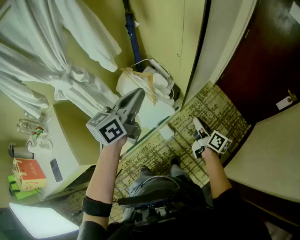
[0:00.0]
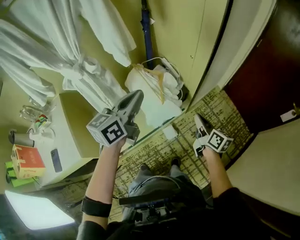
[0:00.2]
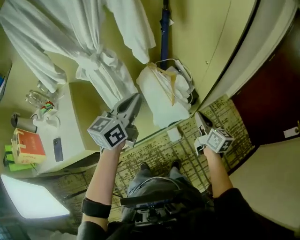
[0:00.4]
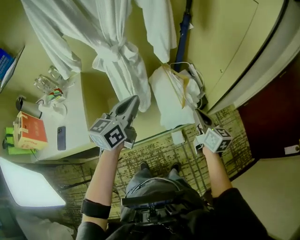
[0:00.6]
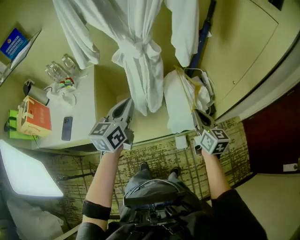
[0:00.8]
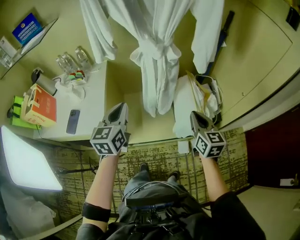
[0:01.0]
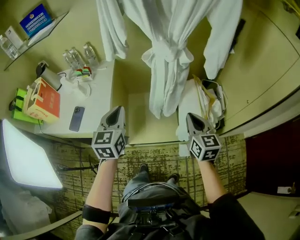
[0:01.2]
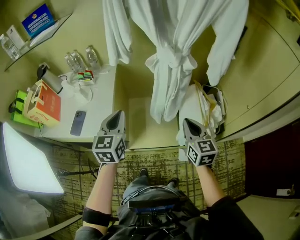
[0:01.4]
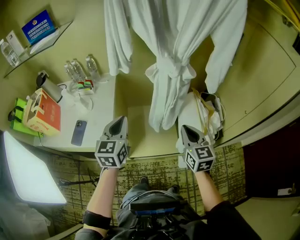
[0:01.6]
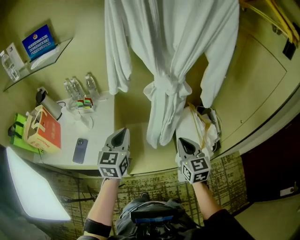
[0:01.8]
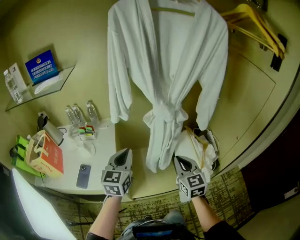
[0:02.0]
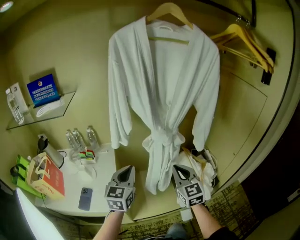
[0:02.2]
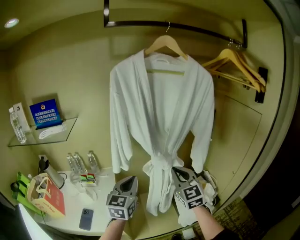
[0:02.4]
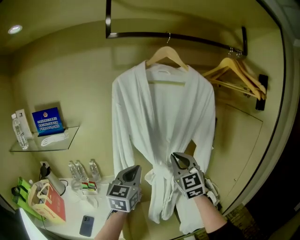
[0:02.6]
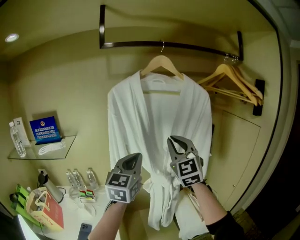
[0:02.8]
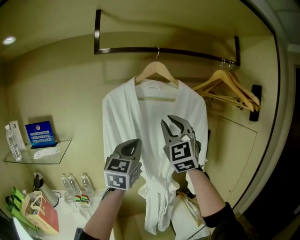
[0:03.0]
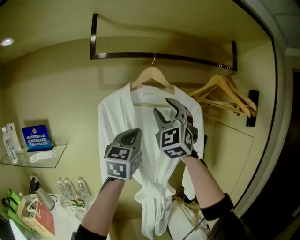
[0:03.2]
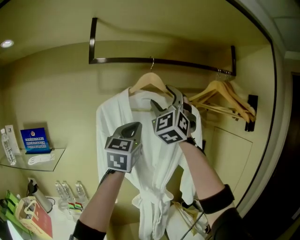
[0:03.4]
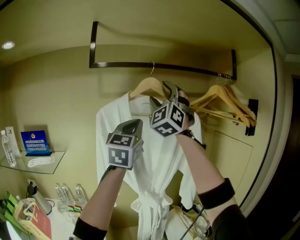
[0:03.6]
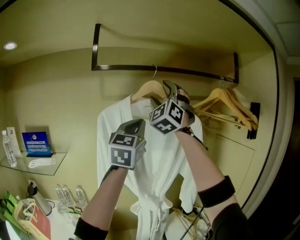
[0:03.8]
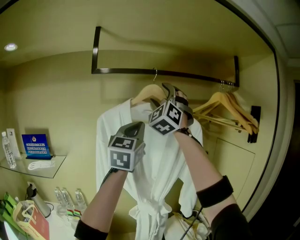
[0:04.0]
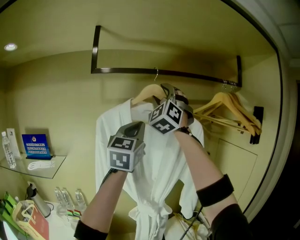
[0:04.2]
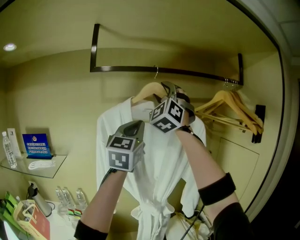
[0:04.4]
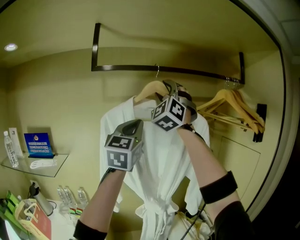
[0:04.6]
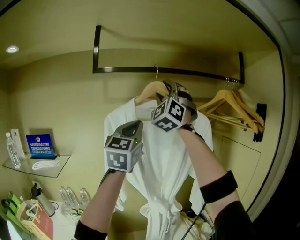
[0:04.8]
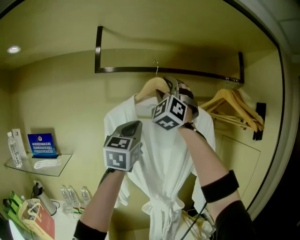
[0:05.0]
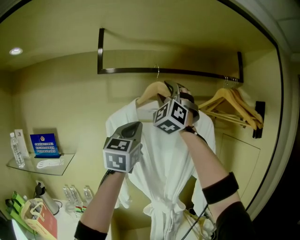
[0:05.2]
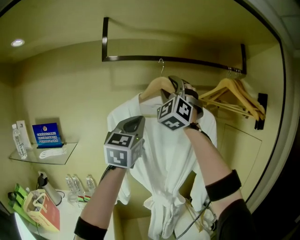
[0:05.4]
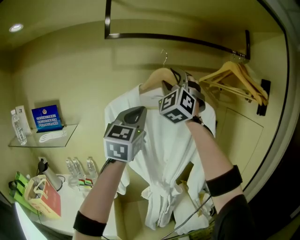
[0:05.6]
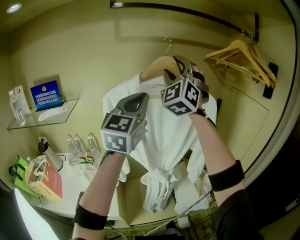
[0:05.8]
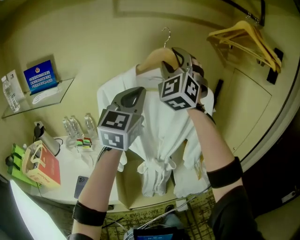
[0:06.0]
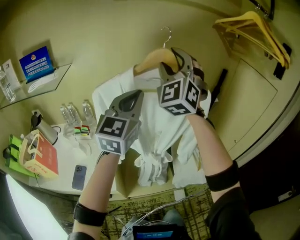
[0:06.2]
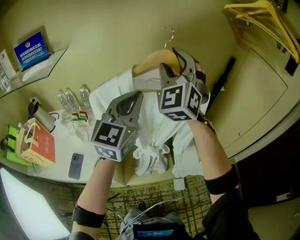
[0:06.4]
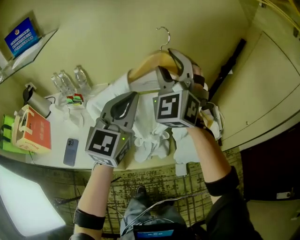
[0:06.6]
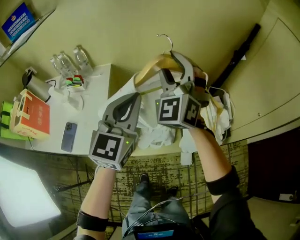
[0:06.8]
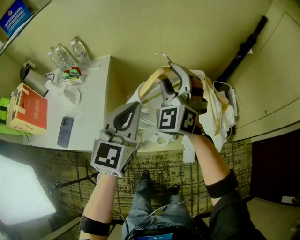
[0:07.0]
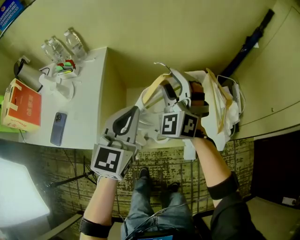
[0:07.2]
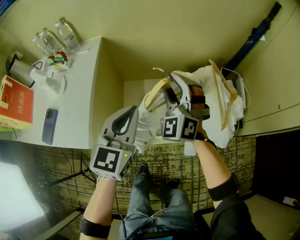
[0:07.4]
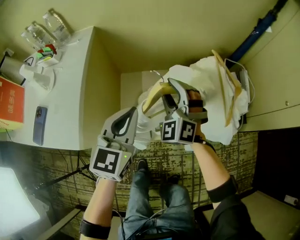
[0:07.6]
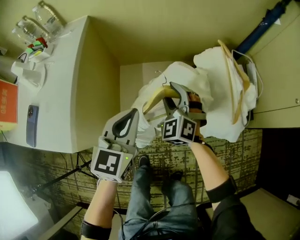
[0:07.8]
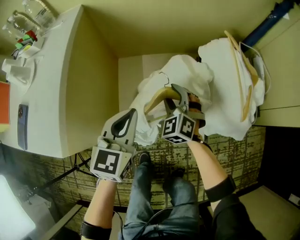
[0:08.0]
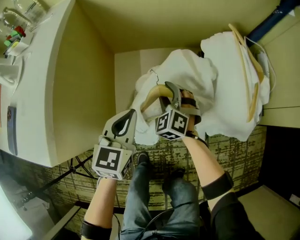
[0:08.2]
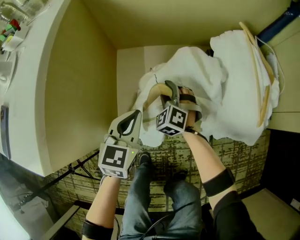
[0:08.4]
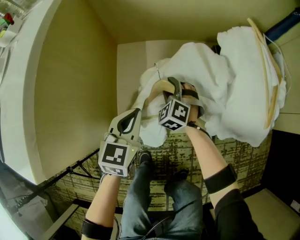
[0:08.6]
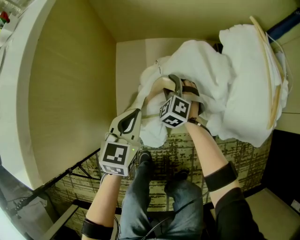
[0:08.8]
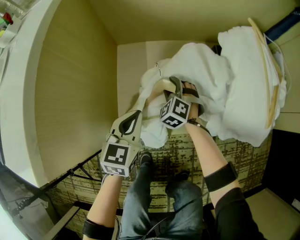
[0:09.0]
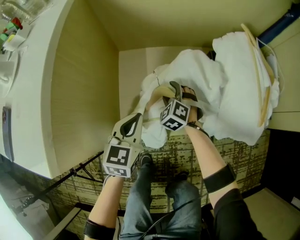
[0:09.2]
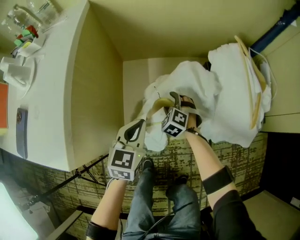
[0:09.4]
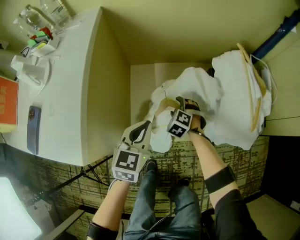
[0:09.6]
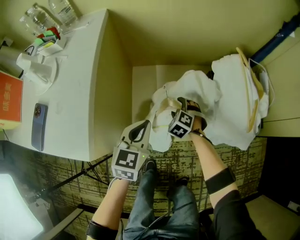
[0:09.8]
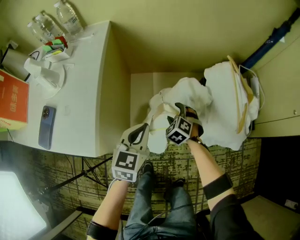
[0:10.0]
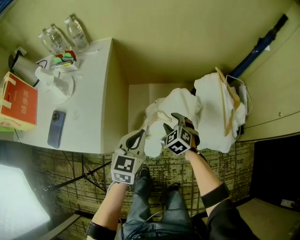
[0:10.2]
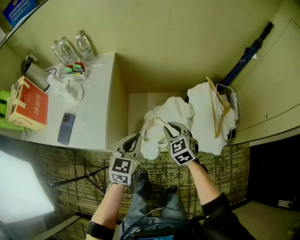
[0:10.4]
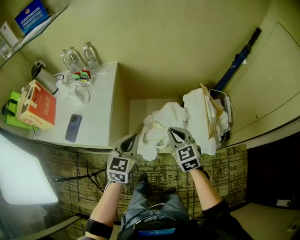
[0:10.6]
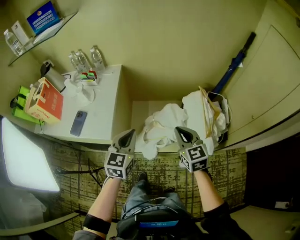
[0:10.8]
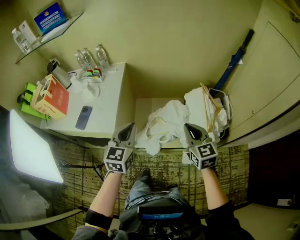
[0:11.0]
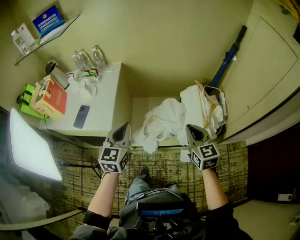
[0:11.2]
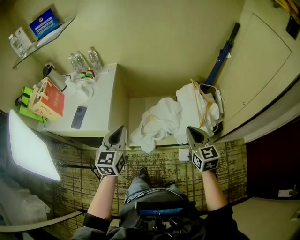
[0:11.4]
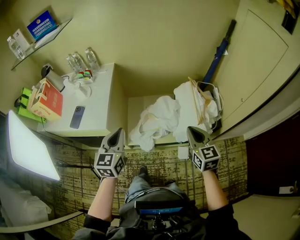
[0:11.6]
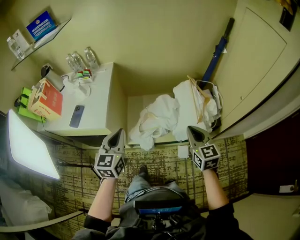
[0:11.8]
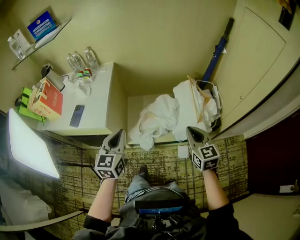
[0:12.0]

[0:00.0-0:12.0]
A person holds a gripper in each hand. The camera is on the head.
0:00.0 to 0:01.6: Both grippers are carried roughly 40 cm. The left gripper turns by about 60 degrees, while the right gripper twists roughly 60 degrees counterclockwise, seen from behind.
0:01.6 to 0:03.0: The right gripper travels upward by roughly 50 cm, and tilts its fingers about 40 degrees upward. Meanwhile the left gripper heads upward and forward, covering some 40 cm, and turns by approximately 40 degrees.
0:03.0 to 0:04.4: Both grippers move upward and forward, about 20 cm. The right gripper rotates roughly 30 degrees, and opens up.
0:04.4 to 0:06.0: The left gripper heads downward and backward, covering about 20 cm; the right gripper is displaced downward by roughly 20 cm.
0:06.0 to 0:07.6: The grippers both shift downward by about 60 cm. The right gripper points its fingers about 40 degrees further downward. The left gripper changes its angle by roughly 30 degrees.
0:07.6 to 0:09.0: The grippers both shift downward by about 35 cm. The right gripper swivels approximately 30 degrees.
0:09.0 to 0:10.4: Both grippers move upward, about 35 cm. The right gripper changes its angle by about 30 degrees, and closes its fingers.
0:10.4 to 0:12.0: The left gripper shifts approximately 20 cm upward and backward, while the right gripper moves backward, upward and to the right, approximately 35 cm, and swivels roughly 30 degrees.

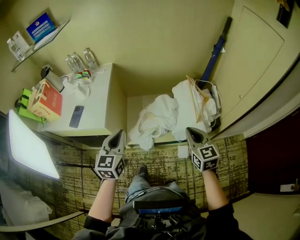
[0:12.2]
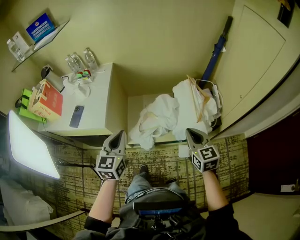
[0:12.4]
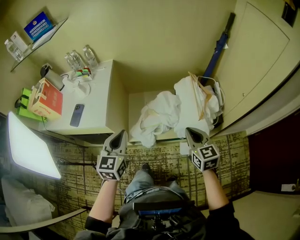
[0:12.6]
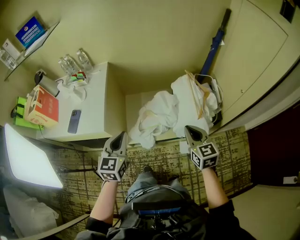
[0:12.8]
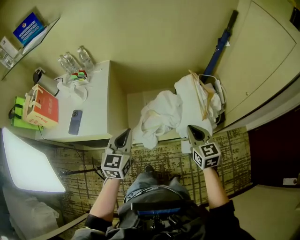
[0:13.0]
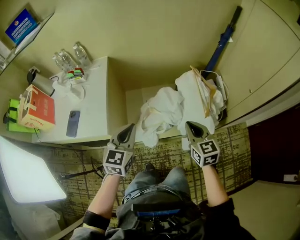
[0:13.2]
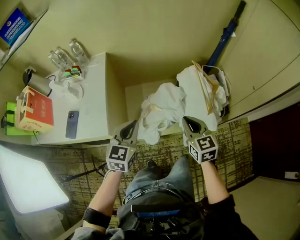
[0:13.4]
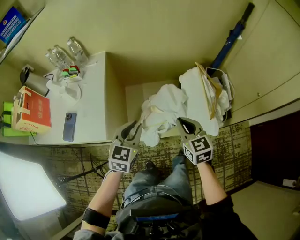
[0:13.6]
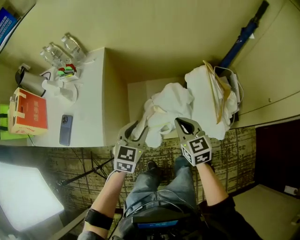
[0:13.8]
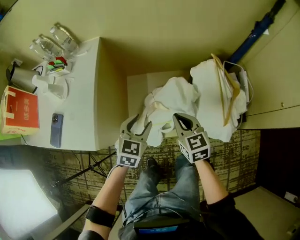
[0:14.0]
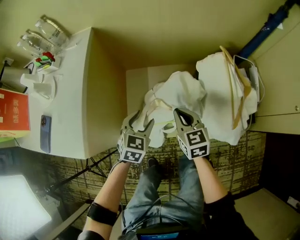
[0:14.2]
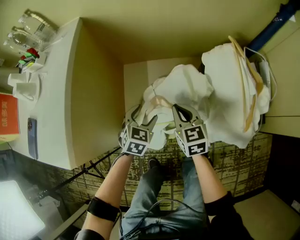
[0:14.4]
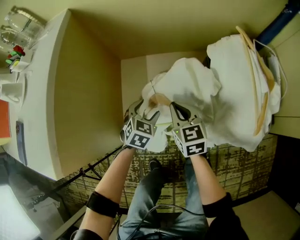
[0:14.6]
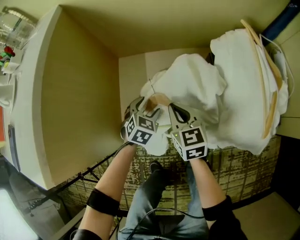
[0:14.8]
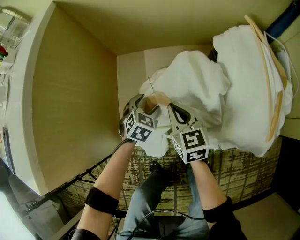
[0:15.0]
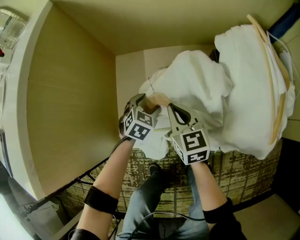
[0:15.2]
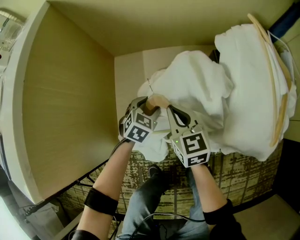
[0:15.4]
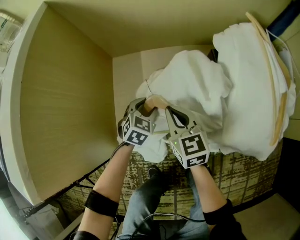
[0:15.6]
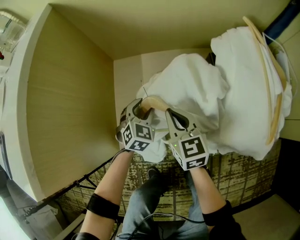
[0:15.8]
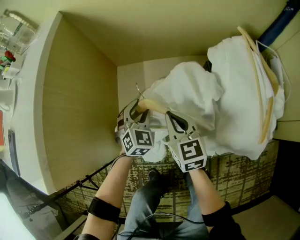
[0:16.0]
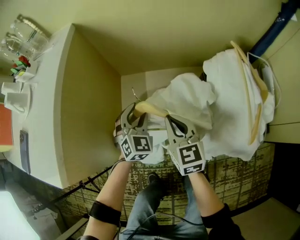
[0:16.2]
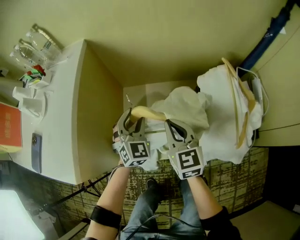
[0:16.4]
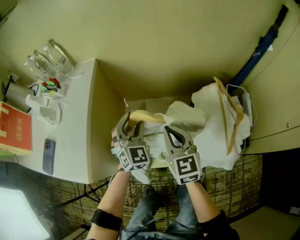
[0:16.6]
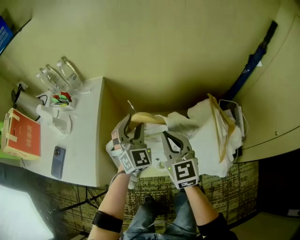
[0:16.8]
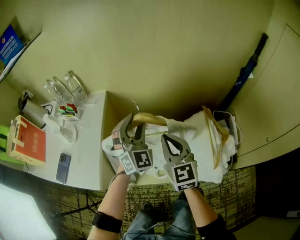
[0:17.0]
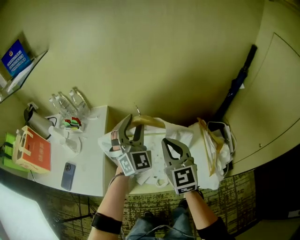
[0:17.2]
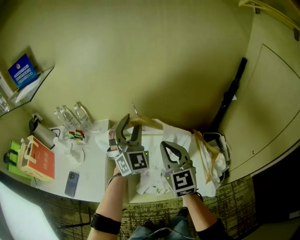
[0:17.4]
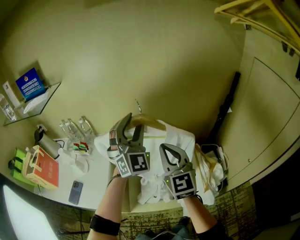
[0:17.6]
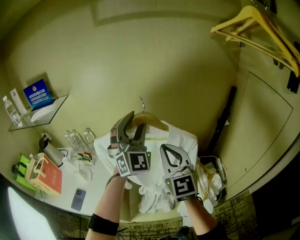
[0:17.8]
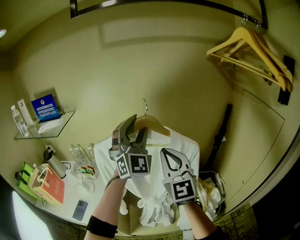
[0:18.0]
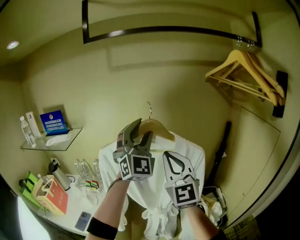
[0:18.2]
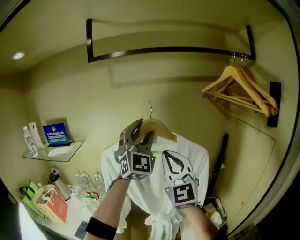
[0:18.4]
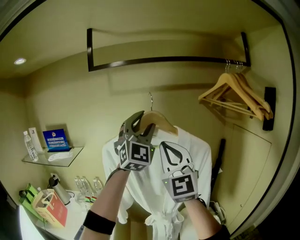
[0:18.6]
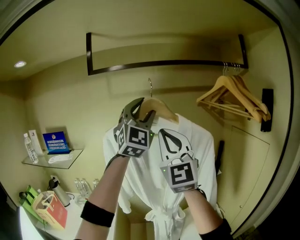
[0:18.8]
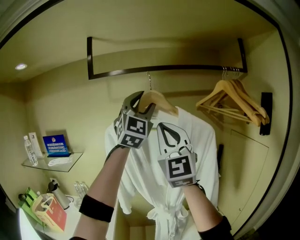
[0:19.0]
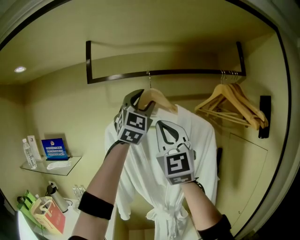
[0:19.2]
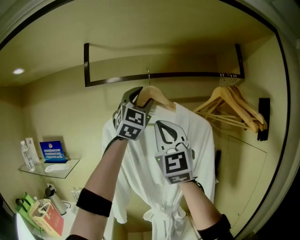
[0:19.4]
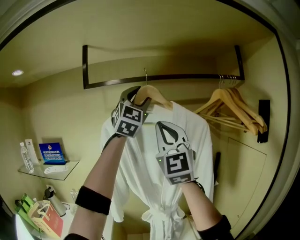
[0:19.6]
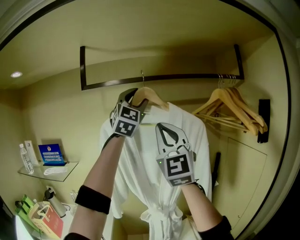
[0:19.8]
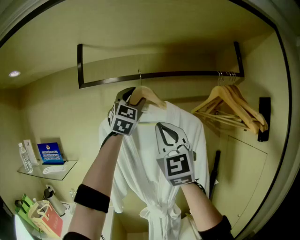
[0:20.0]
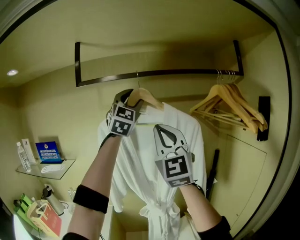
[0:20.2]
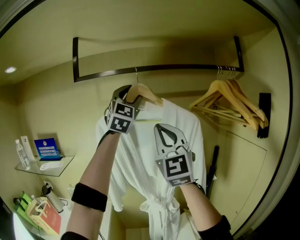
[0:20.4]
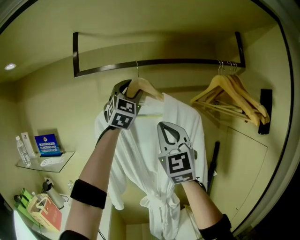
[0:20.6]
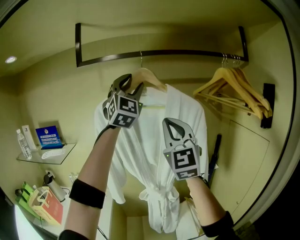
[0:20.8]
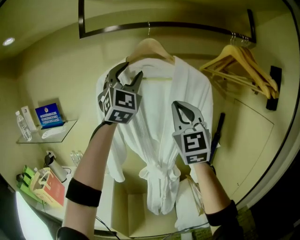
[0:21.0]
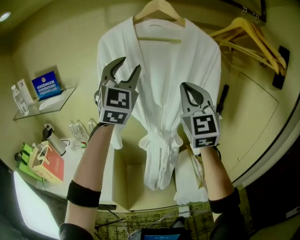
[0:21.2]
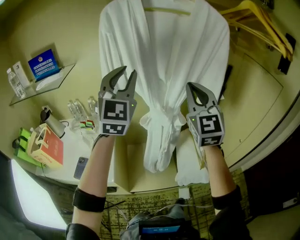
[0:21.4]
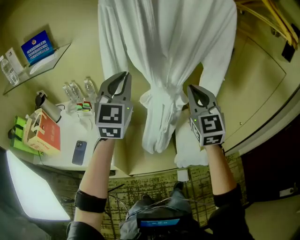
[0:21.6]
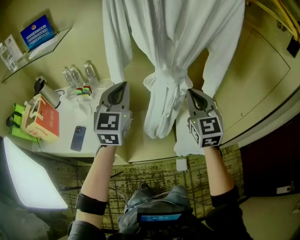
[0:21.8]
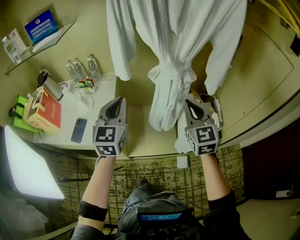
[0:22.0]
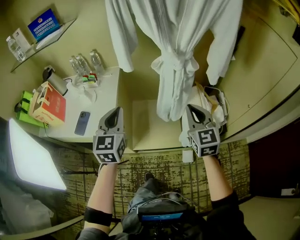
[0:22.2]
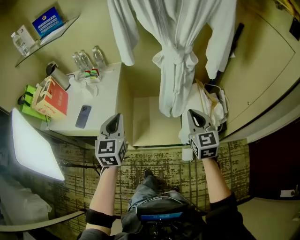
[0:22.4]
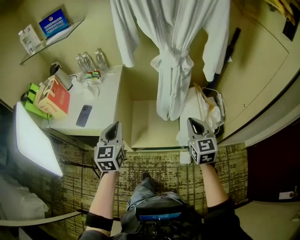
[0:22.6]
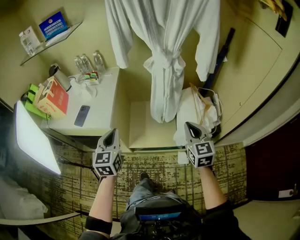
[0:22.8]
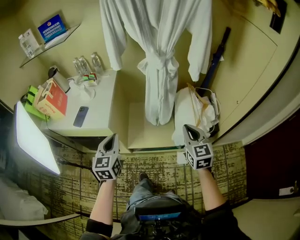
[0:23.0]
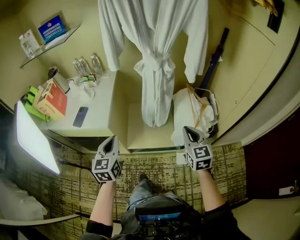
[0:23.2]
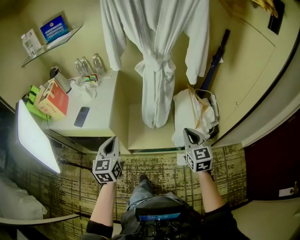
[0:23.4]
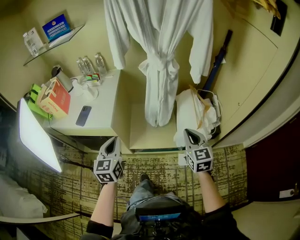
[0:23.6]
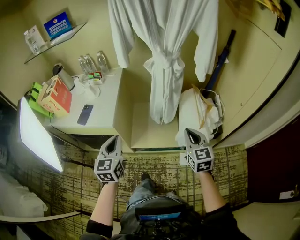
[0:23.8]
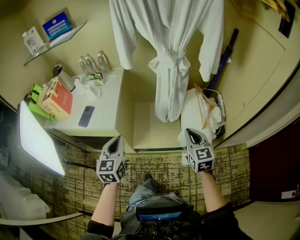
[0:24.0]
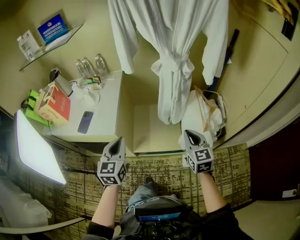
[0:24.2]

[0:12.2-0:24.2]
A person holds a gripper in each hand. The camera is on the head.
0:12.2 to 0:13.8: The left gripper shifts some 25 cm forward and downward, rotates about 20 degrees, and opens up. The right gripper heads forward, downward and to the left, covering some 25 cm.
0:13.8 to 0:15.2: Both grippers travel together downward, about 40 cm. The left gripper changes its angle by roughly 30 degrees, and opens its fingers.
0:15.2 to 0:16.6: The grippers both shift upward by approximately 35 cm. The left gripper points its fingers approximately 40 degrees further upward.
0:16.6 to 0:18.2: Both grippers move upward, roughly 60 cm. The left gripper points its fingers approximately 40 degrees further upward. The right gripper tilts its fingers approximately 40 degrees upward.
0:18.2 to 0:19.8: Both grippers travel together upward, roughly 25 cm.
0:19.8 to 0:21.2: Both grippers move downward, some 20 cm.
0:21.2 to 0:22.6: Both grippers move downward and backward, about 50 cm. The right gripper tips its fingers downward by approximately 40 degrees; the left gripper tilts its fingers about 30 degrees downward, and closes its fingers.
0:22.6 to 0:24.2: The left gripper moves about 10 cm backward and comes back.
